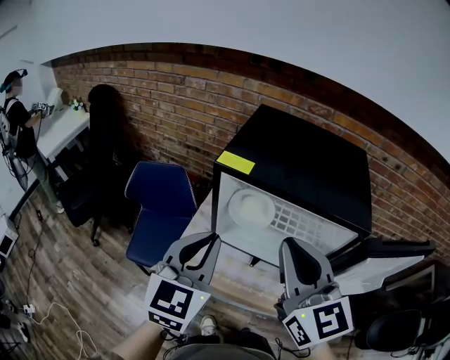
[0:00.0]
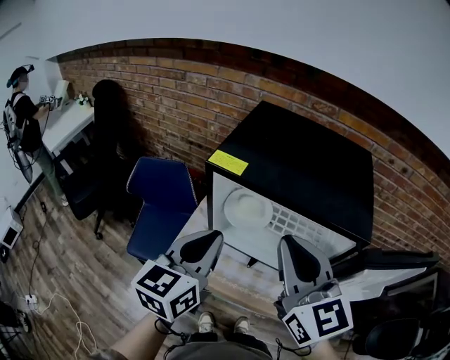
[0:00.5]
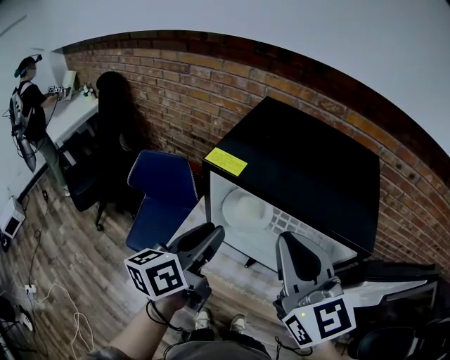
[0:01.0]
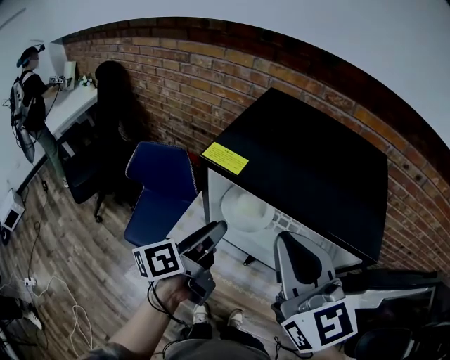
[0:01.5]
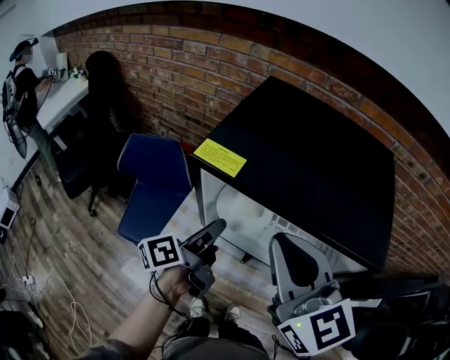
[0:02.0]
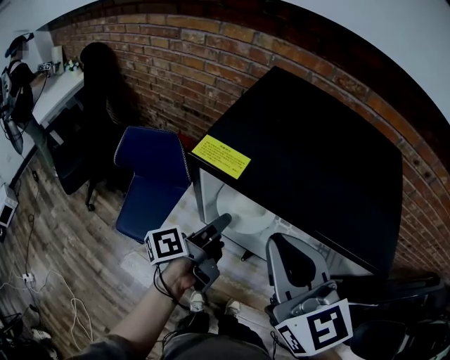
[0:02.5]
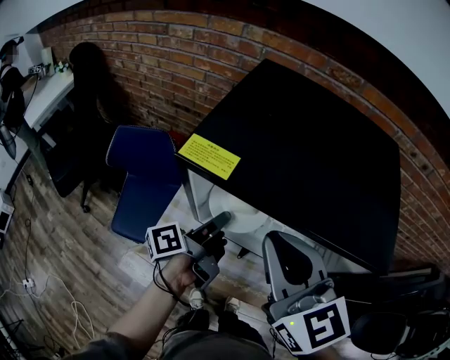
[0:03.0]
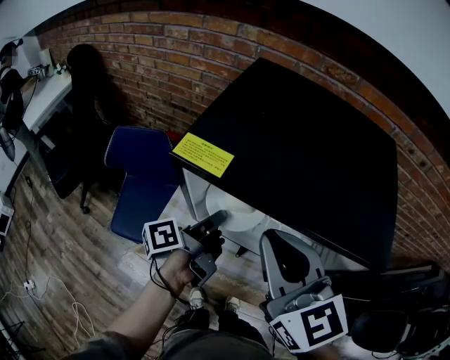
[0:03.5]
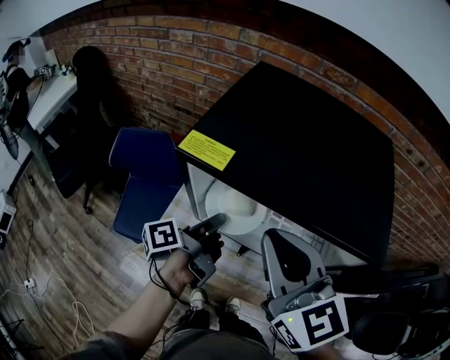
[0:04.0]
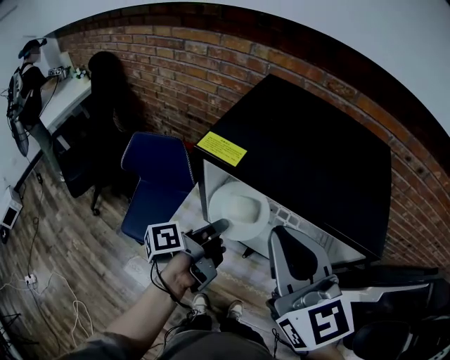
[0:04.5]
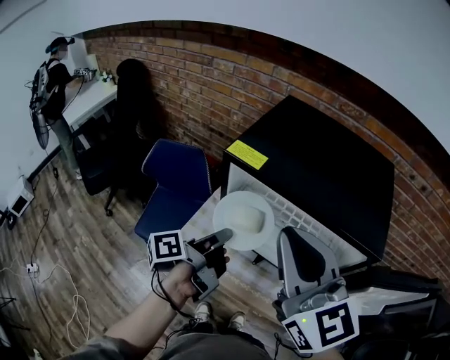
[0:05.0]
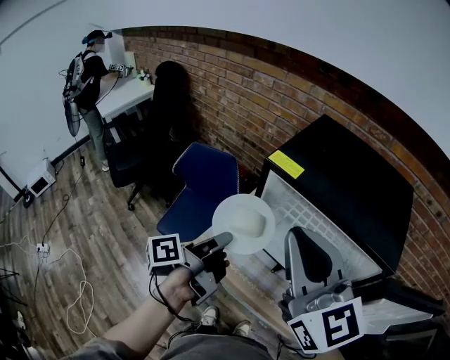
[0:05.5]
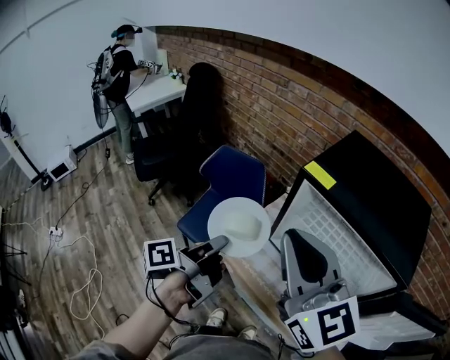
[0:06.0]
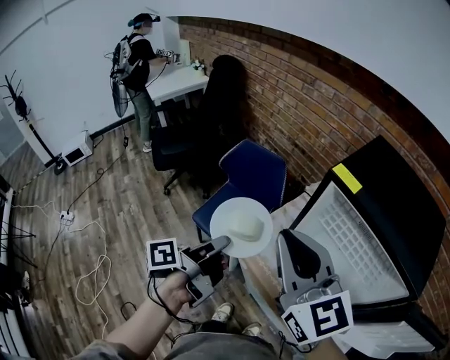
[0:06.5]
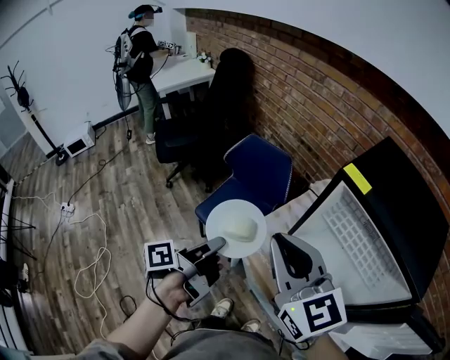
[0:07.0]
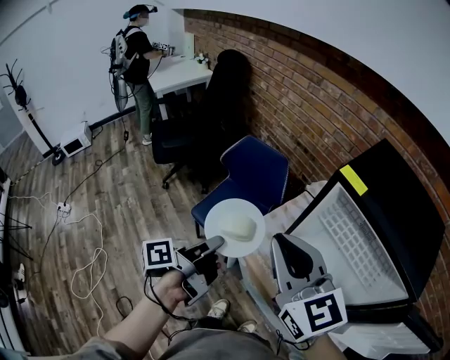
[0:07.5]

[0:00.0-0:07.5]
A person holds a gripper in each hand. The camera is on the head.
0.0 to 2.0 s: The left gripper shifts some 20 cm downward and forward, rolls counterclockwise, seen from behind, by roughly 80 degrees, and opens its fingers. The right gripper shifts some 5 cm forward.
2.0 to 4.0 s: The left gripper closes its fingers.
4.0 to 5.5 s: The right gripper shifts approximately 15 cm upward, to the left and backward, while the left gripper shifts approximately 20 cm backward, to the left and upward.
5.5 to 7.5 s: The right gripper shifts about 15 cm to the left and downward, and changes its angle by some 20 degrees, while the left gripper moves to the left, some 15 cm.

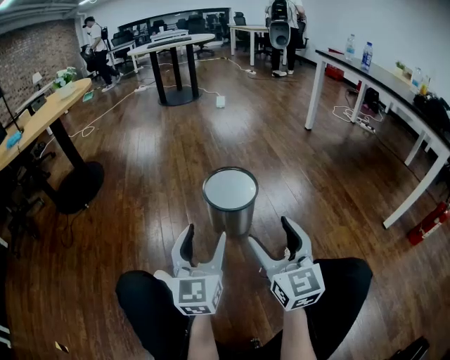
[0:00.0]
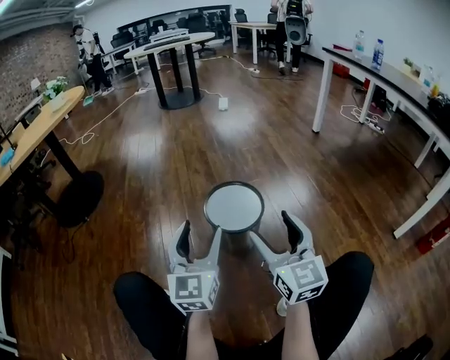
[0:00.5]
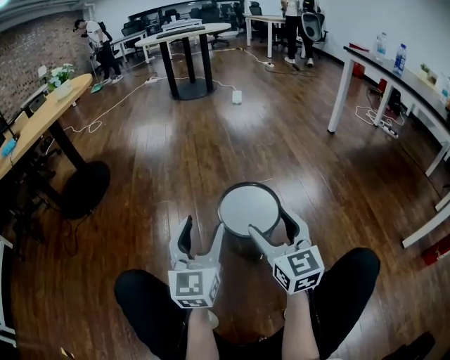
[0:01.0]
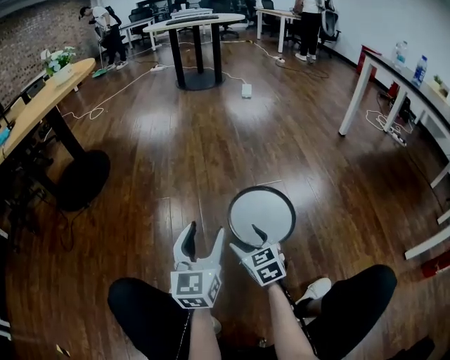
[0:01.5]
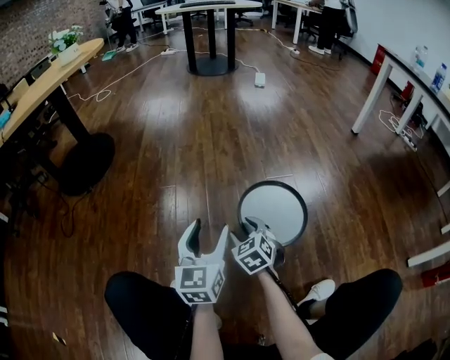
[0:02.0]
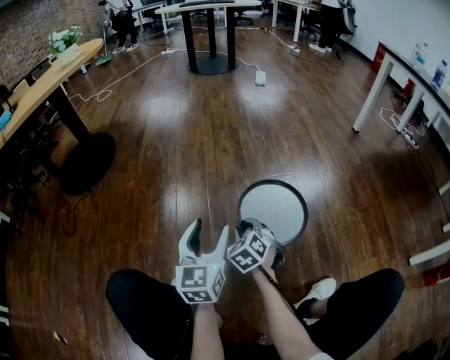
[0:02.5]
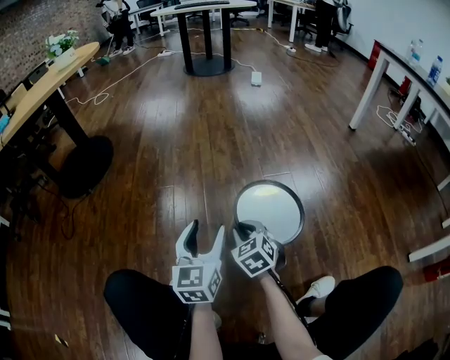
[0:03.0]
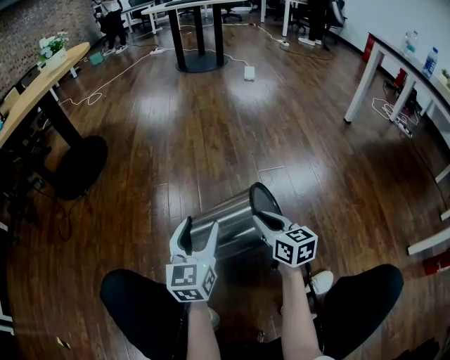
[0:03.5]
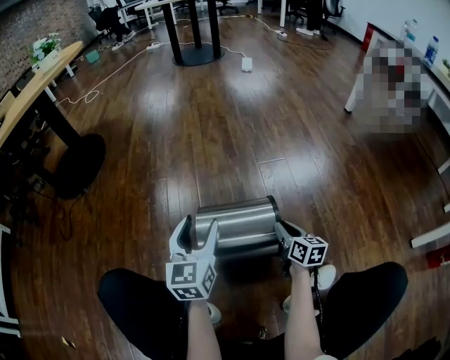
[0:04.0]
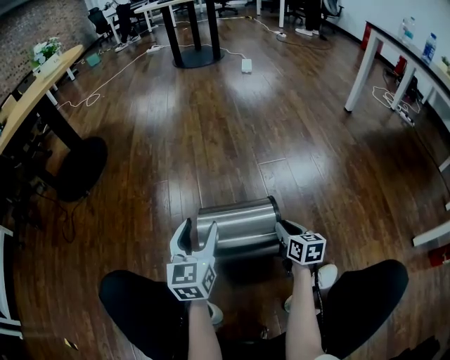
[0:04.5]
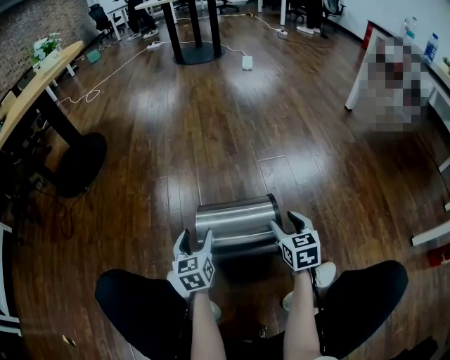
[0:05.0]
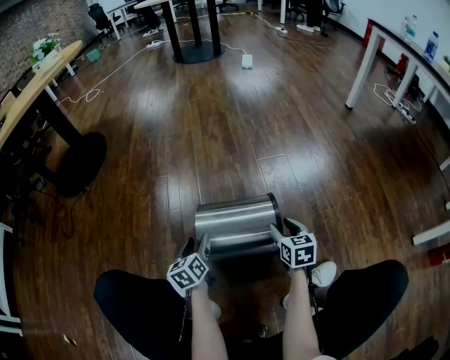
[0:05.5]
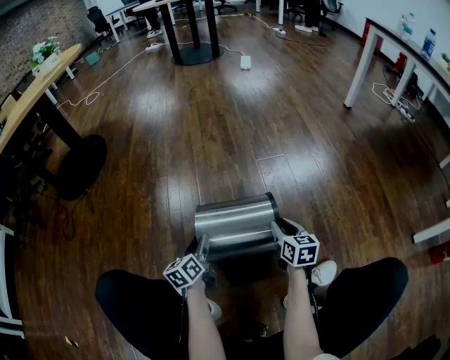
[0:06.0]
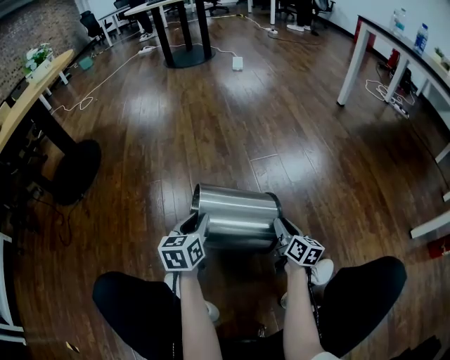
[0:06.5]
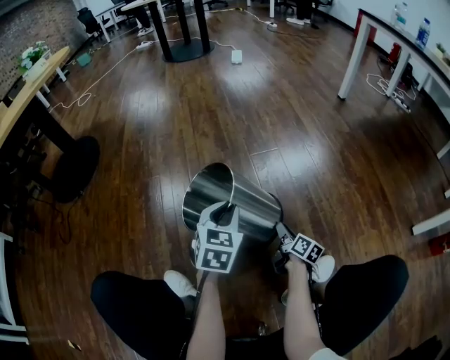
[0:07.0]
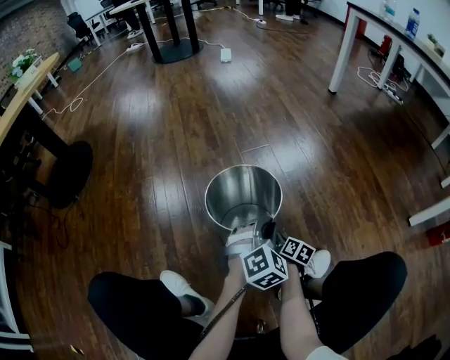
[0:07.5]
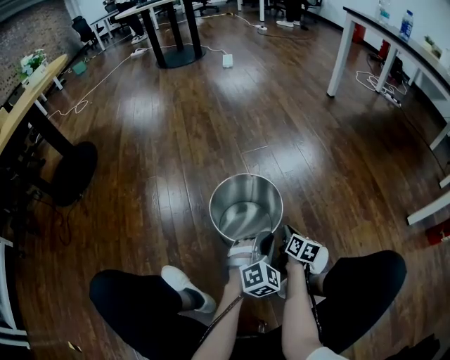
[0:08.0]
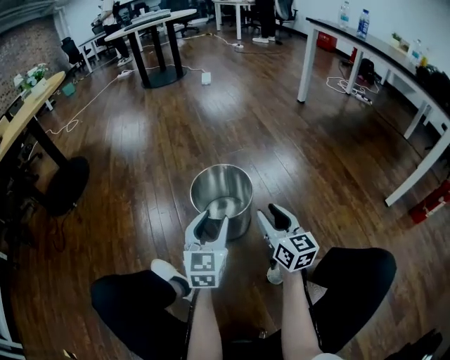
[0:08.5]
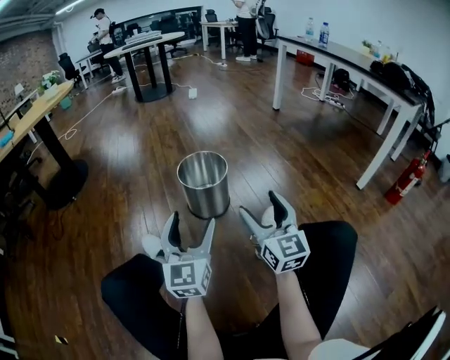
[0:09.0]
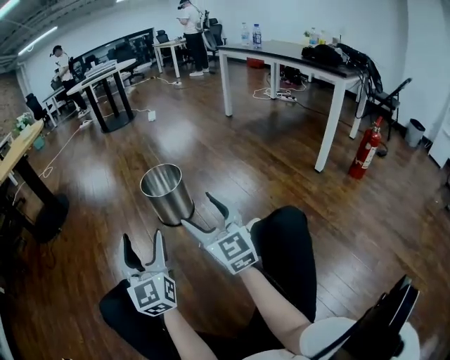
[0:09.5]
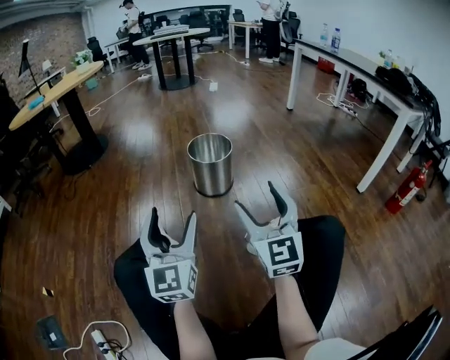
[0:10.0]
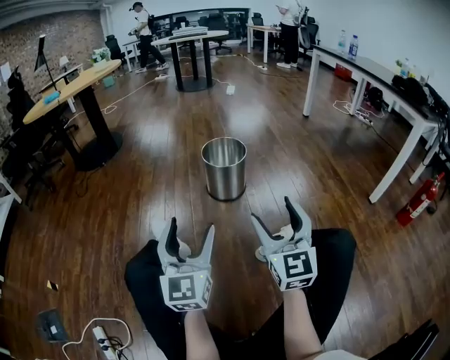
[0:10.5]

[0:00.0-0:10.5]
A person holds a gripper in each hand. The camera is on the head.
0.0 to 2.0 s: The right gripper goes roughly 40 cm forward, downward and to the left, and tilts its fingers about 40 degrees downward; the left gripper moves forward and downward, some 25 cm.
2.0 to 4.0 s: The right gripper heads to the right, covering about 20 cm, rolls clockwise, seen from behind, by some 50 degrees, and closes its fingers.
4.0 to 6.5 s: The left gripper moves downward, roughly 10 cm, turns by approximately 20 degrees, and closes up.
6.5 to 8.5 s: The left gripper heads backward, to the right and upward, covering approximately 25 cm, and rotates some 30 degrees. The right gripper travels upward and backward by about 25 cm, and changes its angle by approximately 30 degrees.
8.5 to 10.5 s: The right gripper is displaced backward and upward by about 40 cm, changes its angle by roughly 30 degrees, and opens, while the left gripper shifts some 40 cm backward, turns by approximately 30 degrees, and opens up.

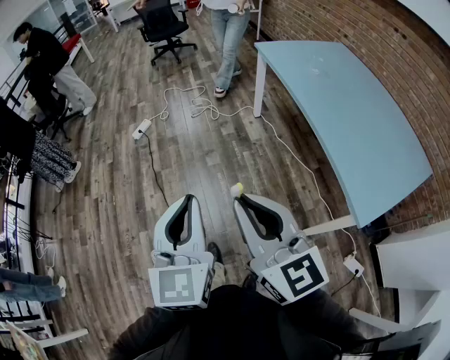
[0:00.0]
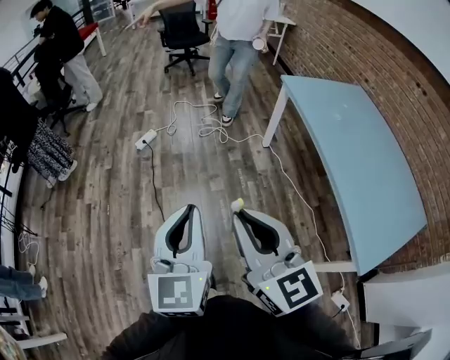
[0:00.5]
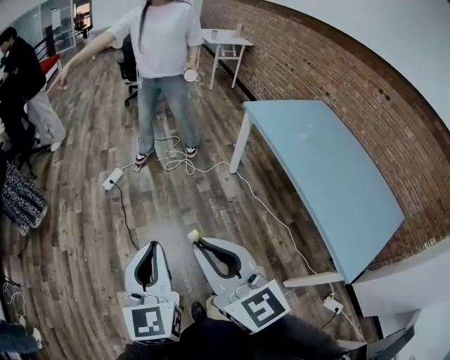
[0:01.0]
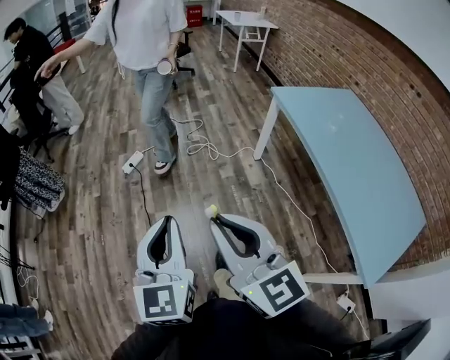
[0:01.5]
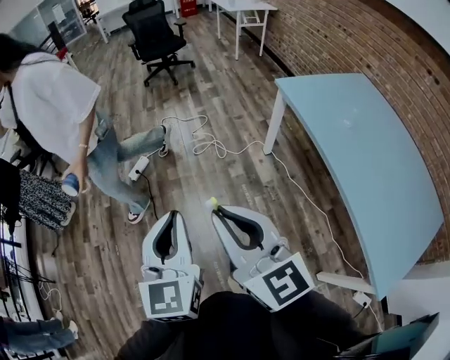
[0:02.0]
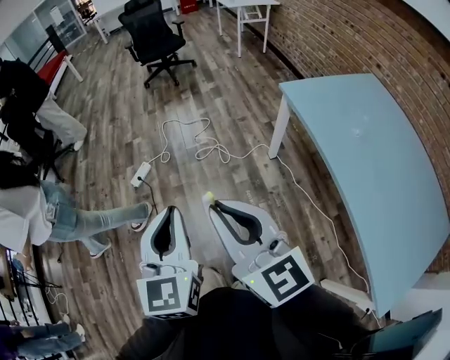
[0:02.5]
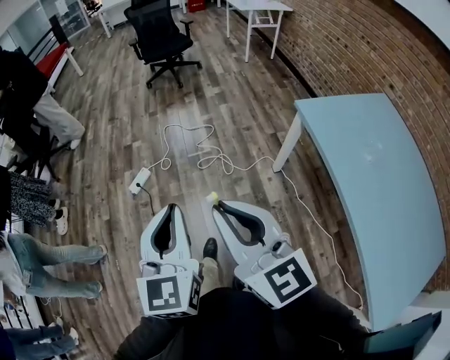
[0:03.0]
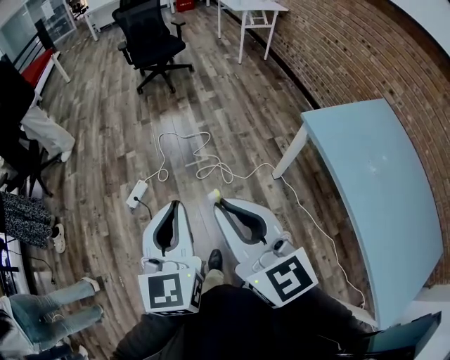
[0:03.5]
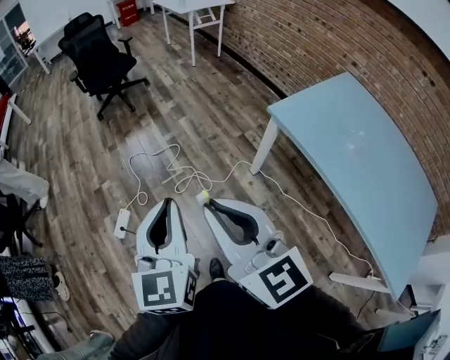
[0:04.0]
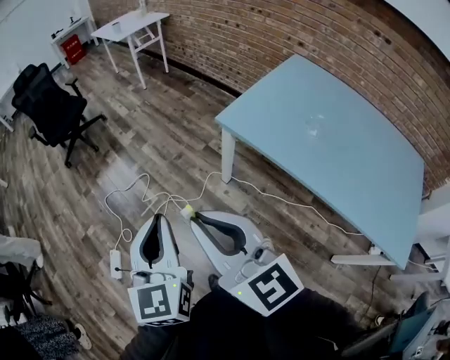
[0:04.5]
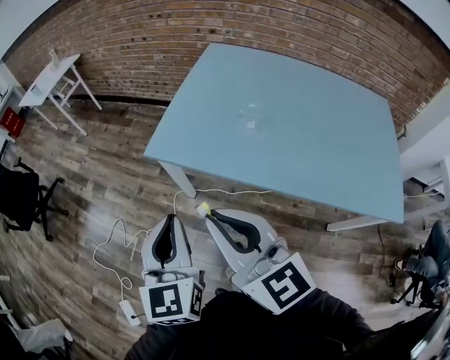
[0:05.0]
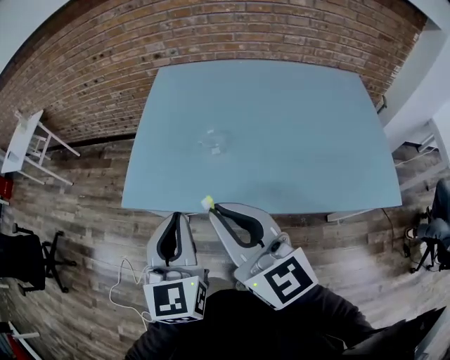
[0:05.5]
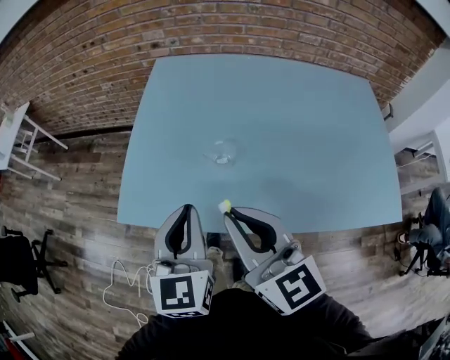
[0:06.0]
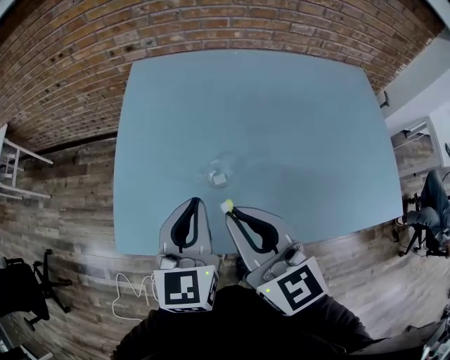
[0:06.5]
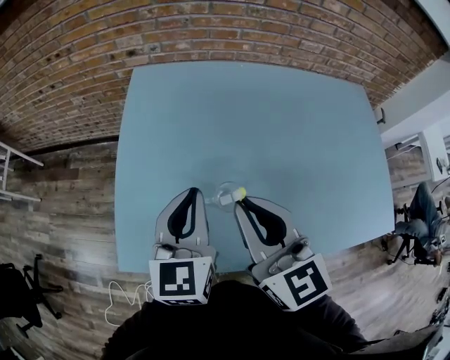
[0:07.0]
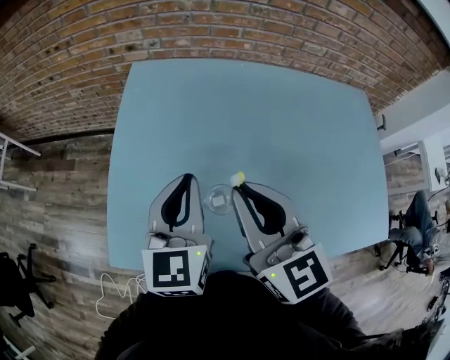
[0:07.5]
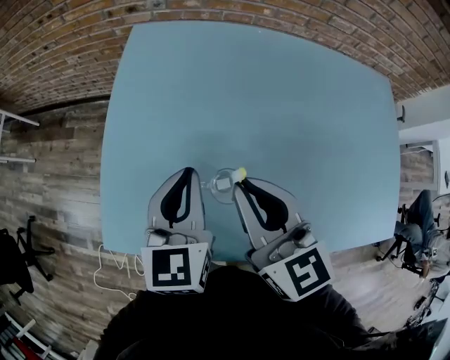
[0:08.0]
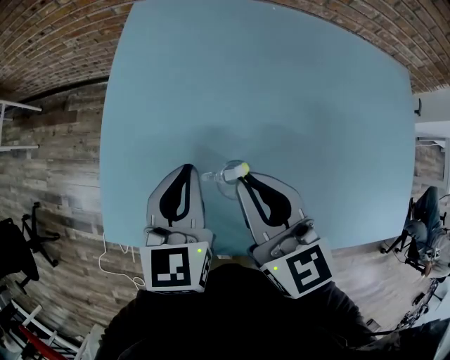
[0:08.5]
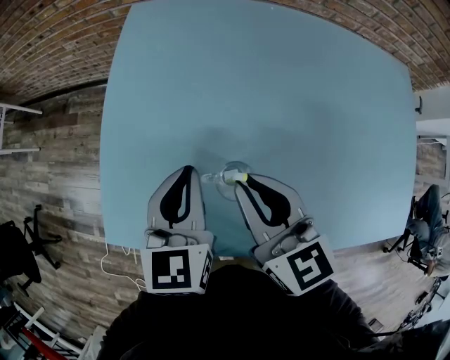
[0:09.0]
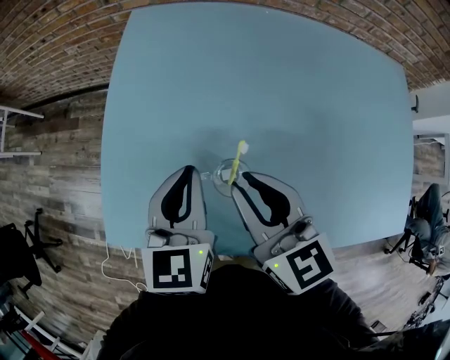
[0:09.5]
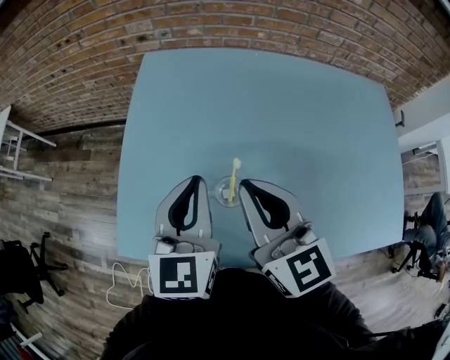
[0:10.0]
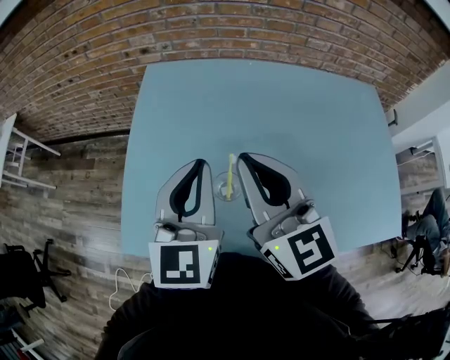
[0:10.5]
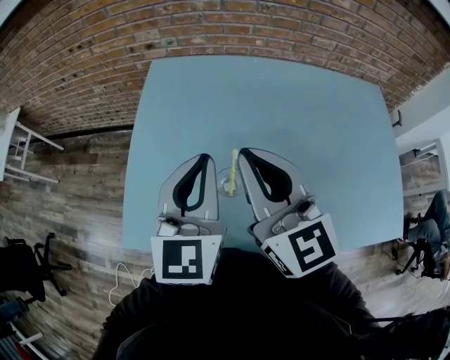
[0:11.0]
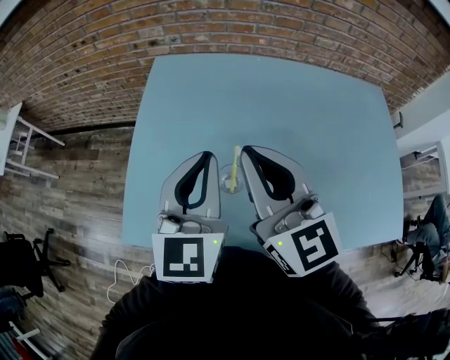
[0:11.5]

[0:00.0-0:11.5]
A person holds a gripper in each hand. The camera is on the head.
0.0 to 2.0 s: Both grippers move forward, approximately 40 cm.
2.0 to 4.0 s: Both grippers travel together forward, roughly 40 cm.
4.0 to 6.0 s: The pair of grippers is taken approximately 60 cm. The right gripper rotates approximately 60 degrees; the left gripper changes its angle by about 60 degrees.
6.0 to 7.5 s: The grippers both shift forward by some 20 cm.
7.5 to 9.5 s: The grippers both shift downward by approximately 10 cm.
9.5 to 11.5 s: Both grippers move upward, approximately 15 cm. The right gripper turns by approximately 20 degrees.
